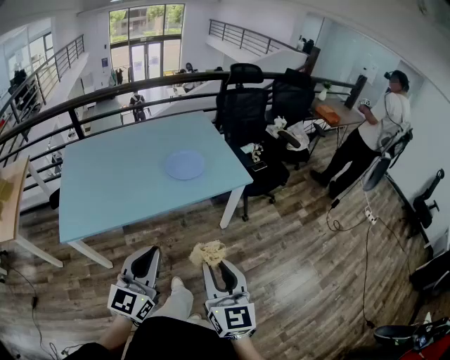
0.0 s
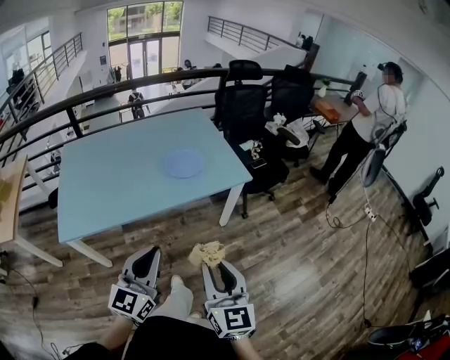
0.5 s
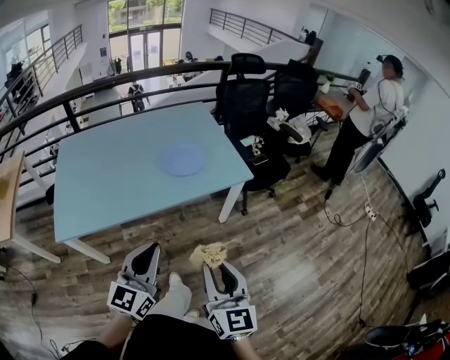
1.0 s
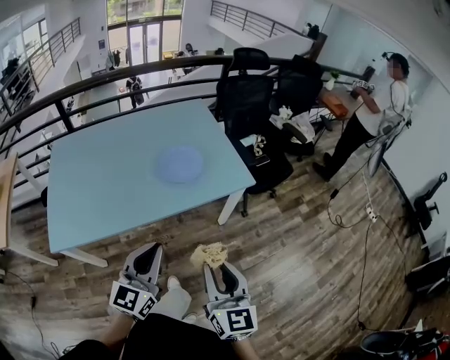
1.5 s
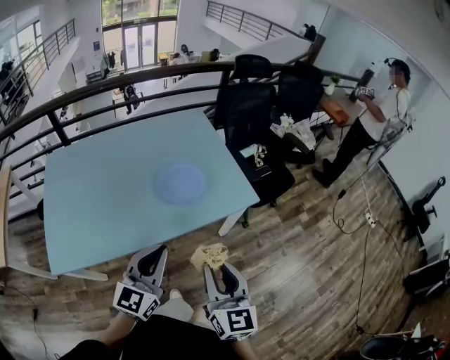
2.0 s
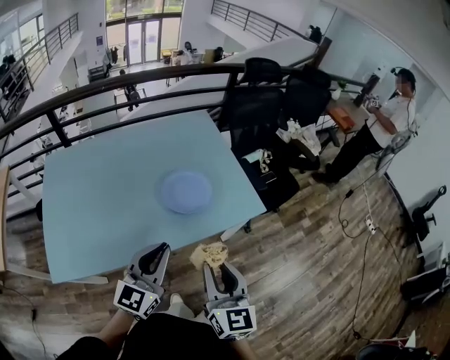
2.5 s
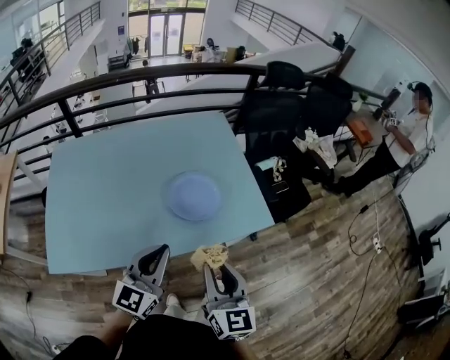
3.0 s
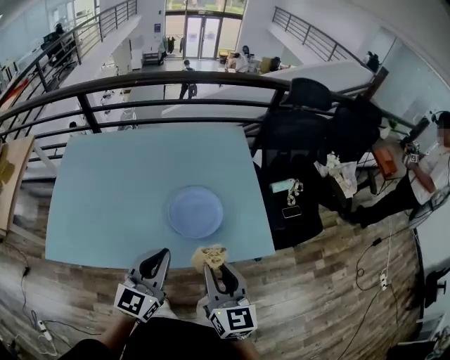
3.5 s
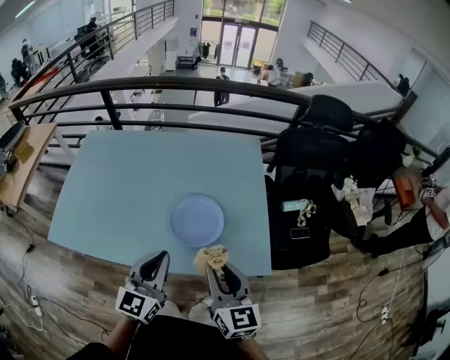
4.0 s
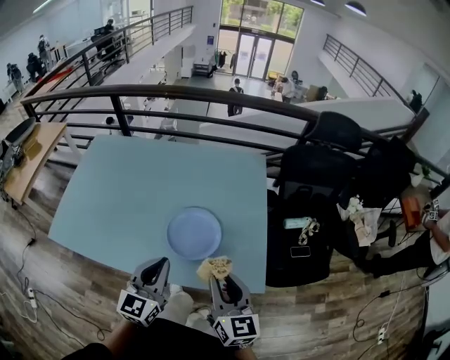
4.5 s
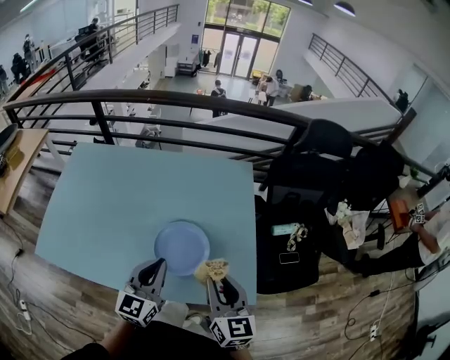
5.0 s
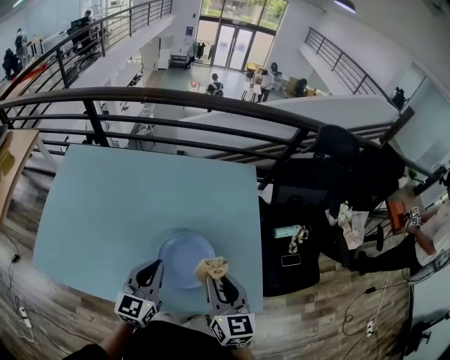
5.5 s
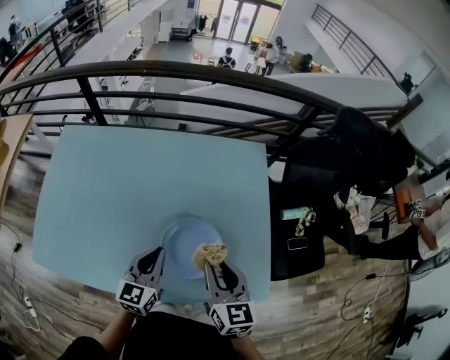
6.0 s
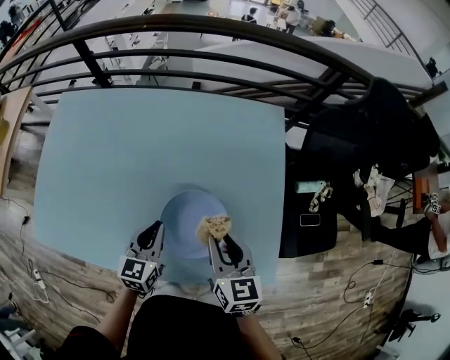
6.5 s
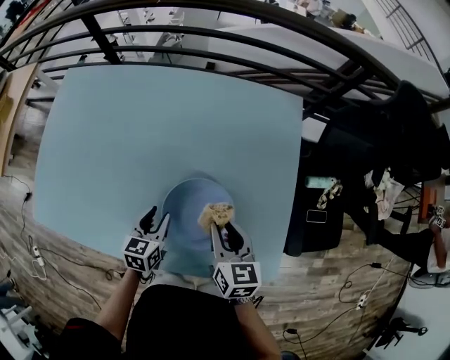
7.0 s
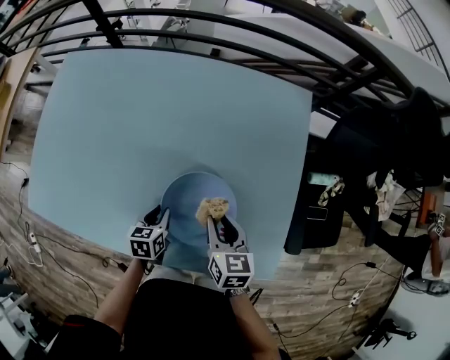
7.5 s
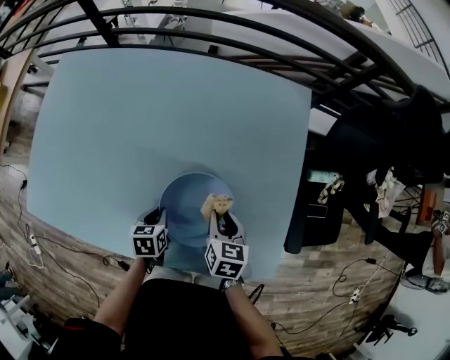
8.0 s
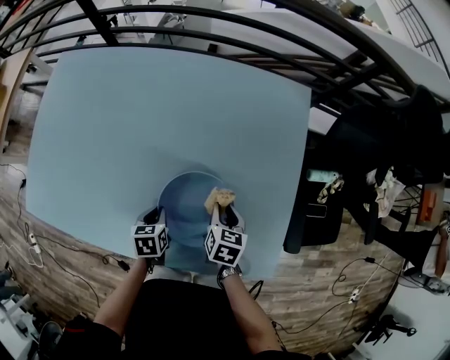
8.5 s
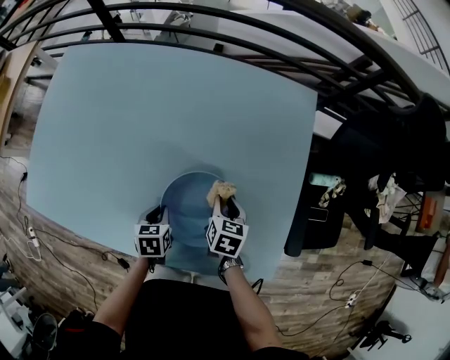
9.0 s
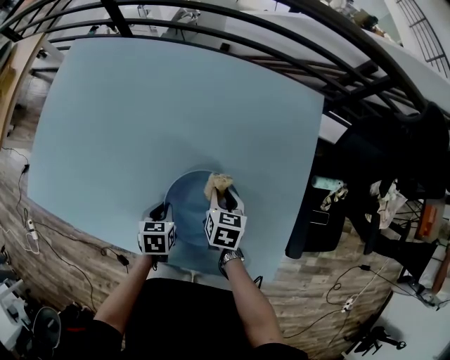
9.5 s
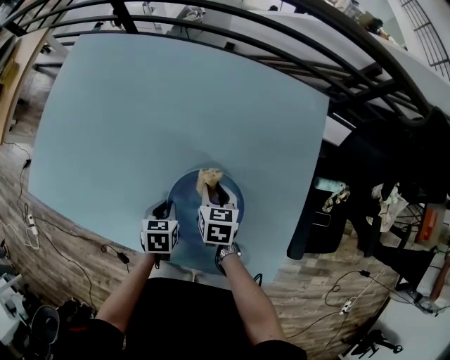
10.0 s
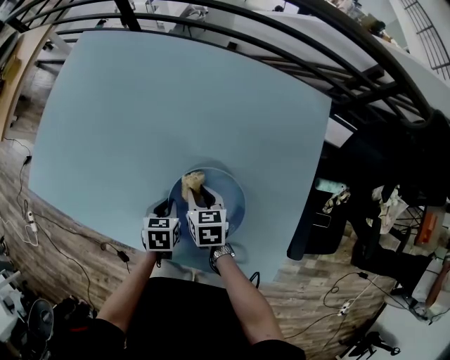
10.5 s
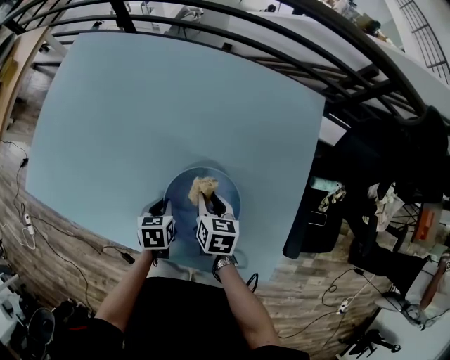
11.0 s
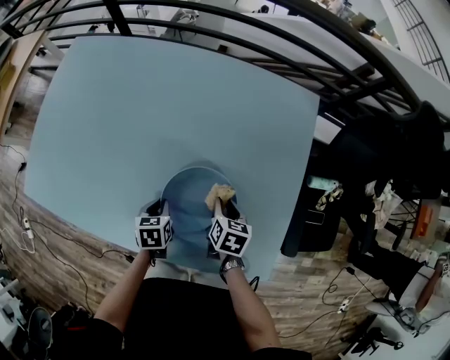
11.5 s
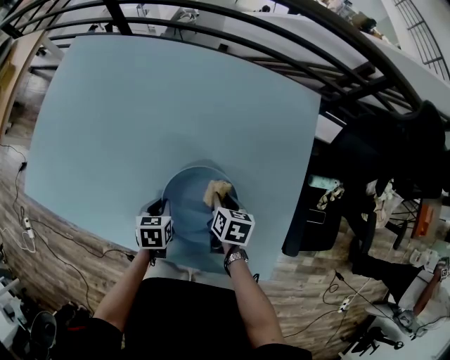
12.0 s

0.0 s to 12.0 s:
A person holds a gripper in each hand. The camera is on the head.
0.0 to 2.0 s: The two grippers go roughly 20 cm forward.
2.0 to 4.0 s: The left gripper moves approximately 20 cm, and swivels some 30 degrees. The right gripper moves about 25 cm, and changes its angle by about 30 degrees.
4.0 to 6.0 s: The right gripper moves forward, roughly 20 cm. Meanwhile the left gripper is displaced forward and downward by roughly 20 cm.
6.0 to 8.0 s: Both grippers move downward, approximately 25 cm. The right gripper turns by some 30 degrees; the left gripper tilts its fingers approximately 40 degrees downward.
8.0 to 10.0 s: The right gripper moves to the left and forward, approximately 10 cm.
10.0 to 12.0 s: The right gripper shifts about 5 cm to the right.

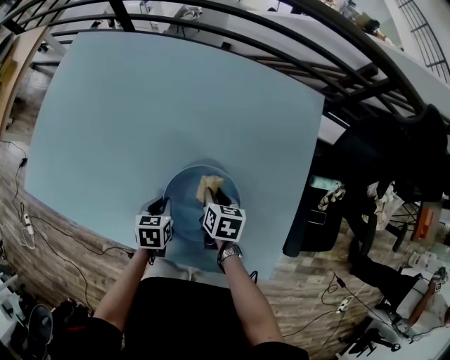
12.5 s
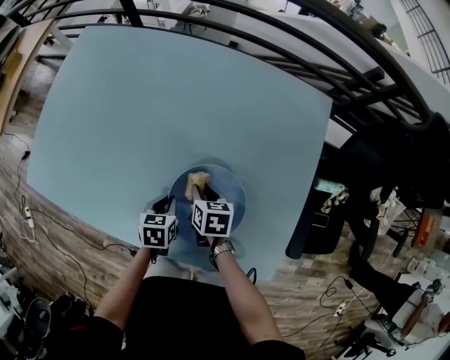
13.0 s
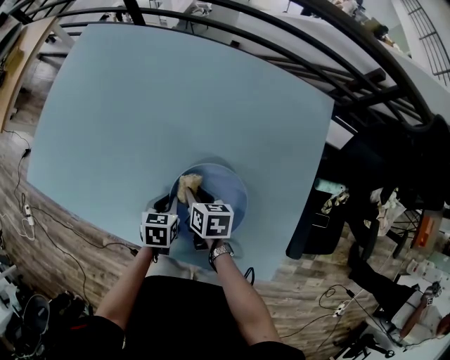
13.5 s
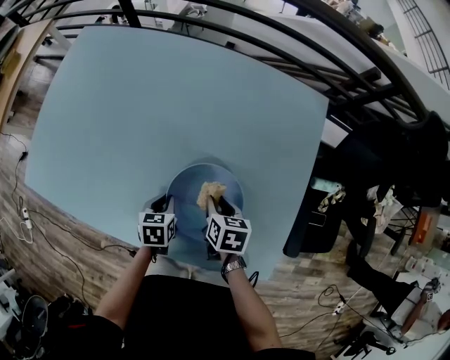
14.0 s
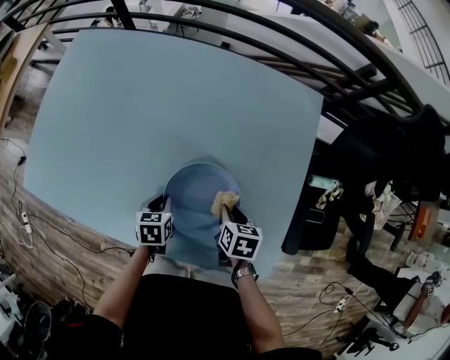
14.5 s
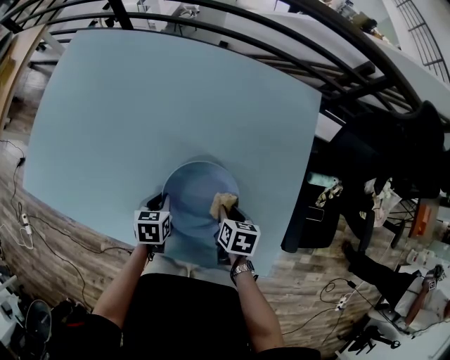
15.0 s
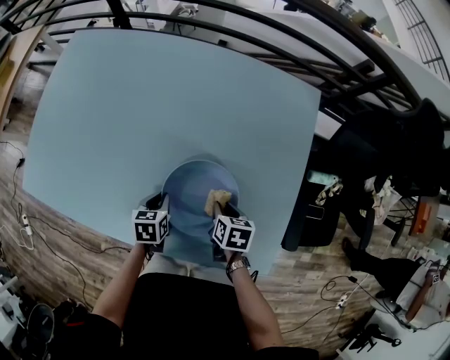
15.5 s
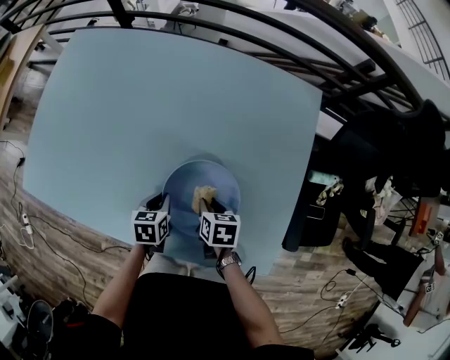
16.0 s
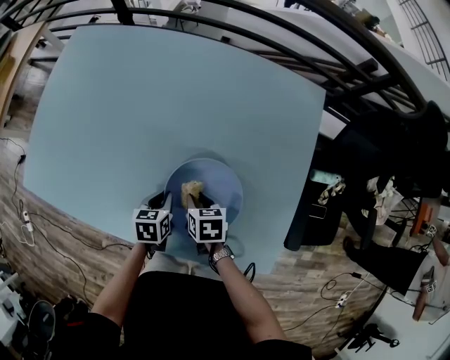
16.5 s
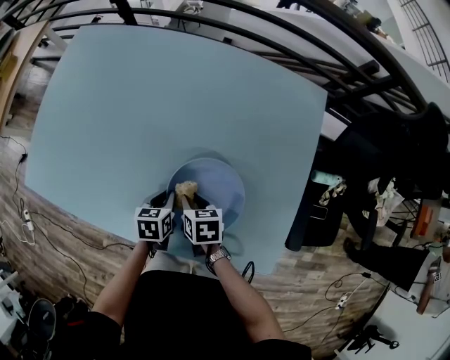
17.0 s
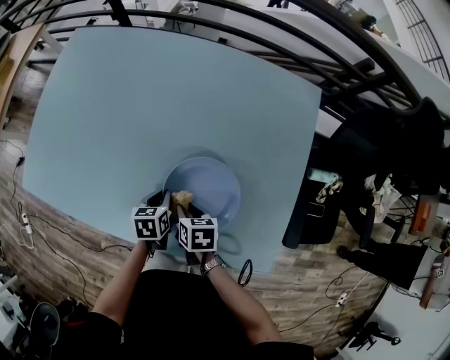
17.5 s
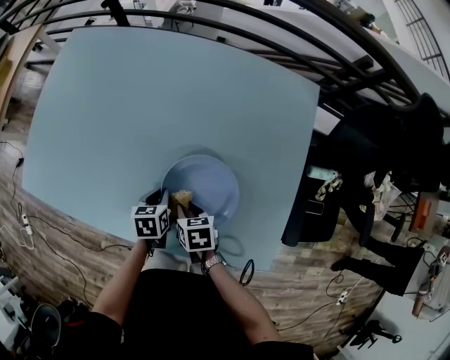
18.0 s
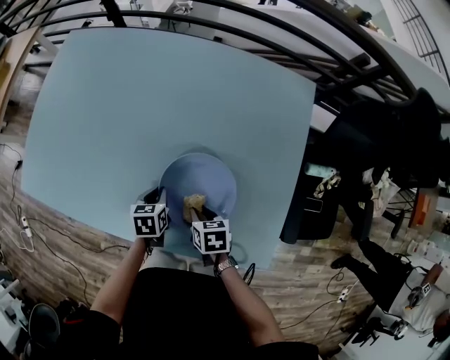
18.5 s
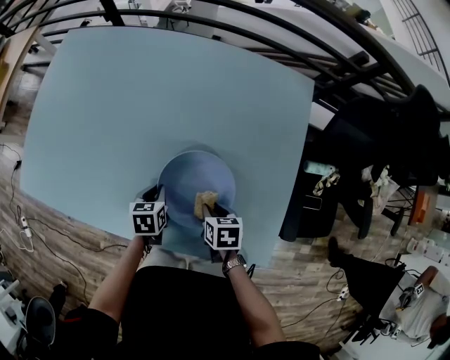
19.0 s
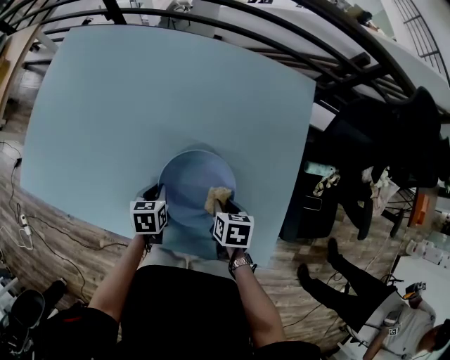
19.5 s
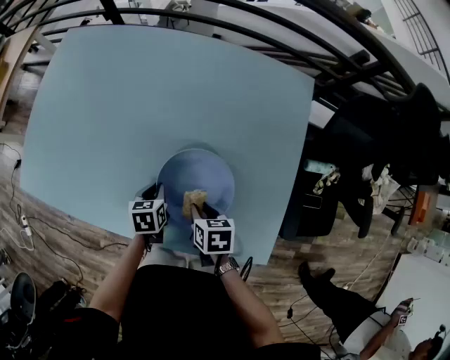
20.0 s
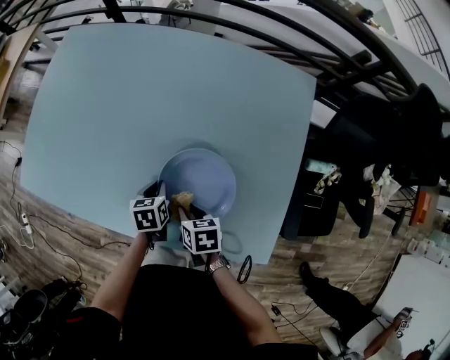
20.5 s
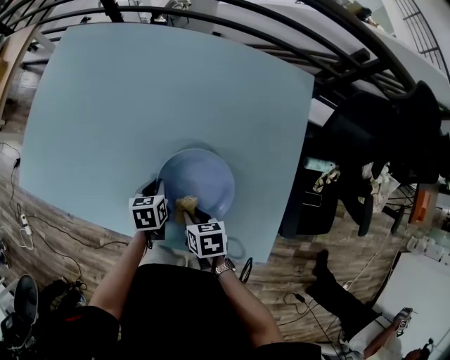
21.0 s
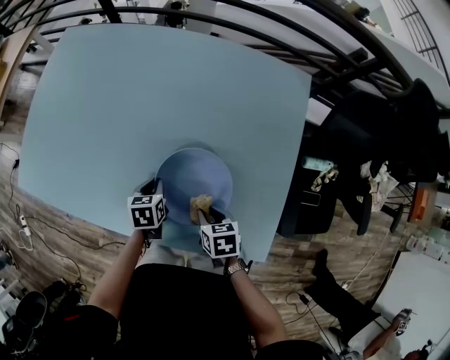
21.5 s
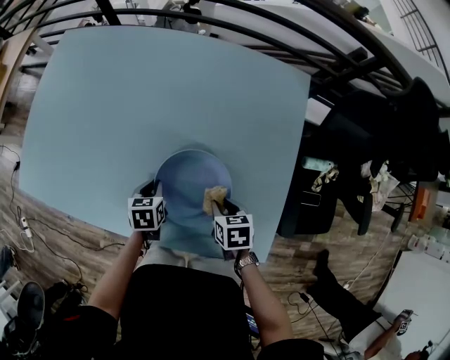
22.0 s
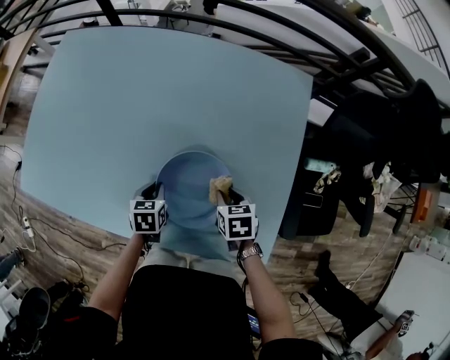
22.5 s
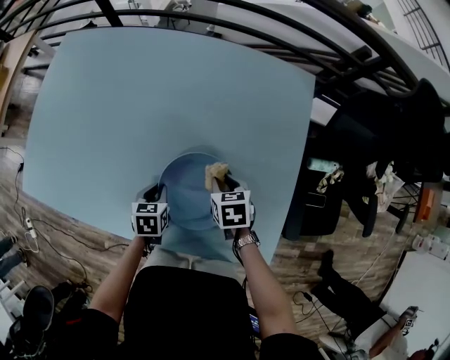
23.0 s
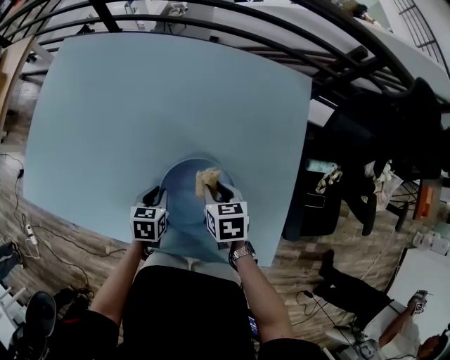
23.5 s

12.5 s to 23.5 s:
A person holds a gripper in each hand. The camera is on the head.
12.5 to 14.5 s: The right gripper travels backward by about 5 cm.
14.5 to 16.0 s: The right gripper shifts roughly 5 cm to the left.
16.0 to 18.0 s: The right gripper is displaced to the left by some 10 cm.
18.0 to 20.0 s: The right gripper is displaced to the right by roughly 5 cm.
20.0 to 21.5 s: The grippers move only a little.
21.5 to 23.5 s: The right gripper goes roughly 10 cm forward.

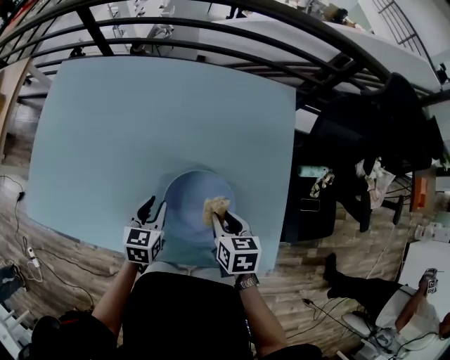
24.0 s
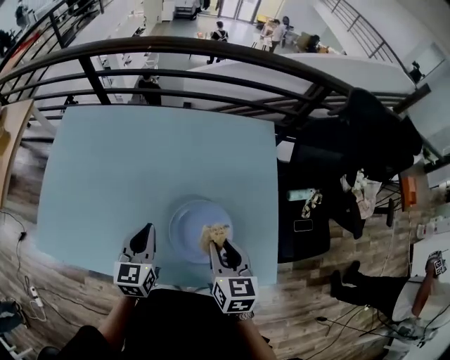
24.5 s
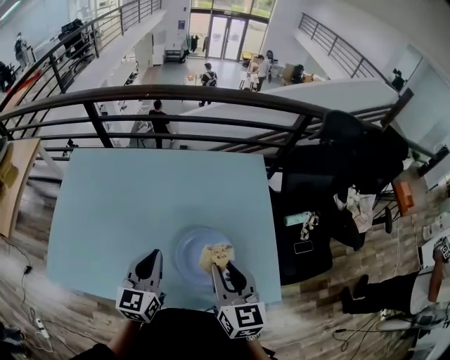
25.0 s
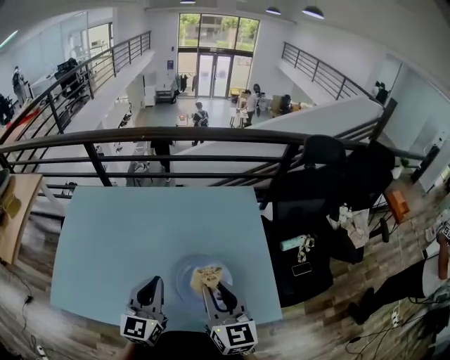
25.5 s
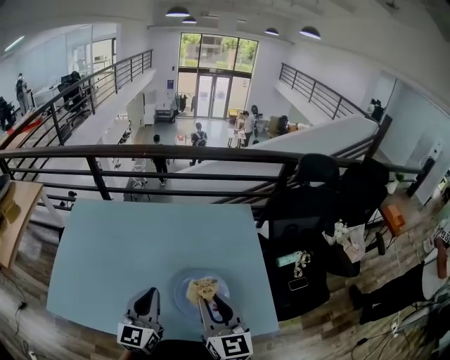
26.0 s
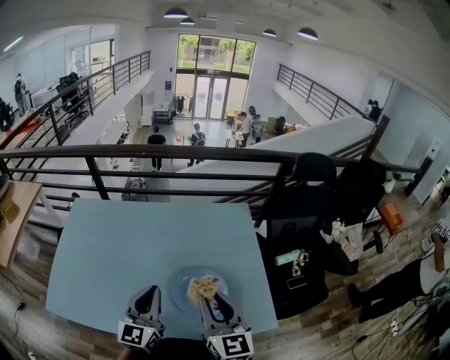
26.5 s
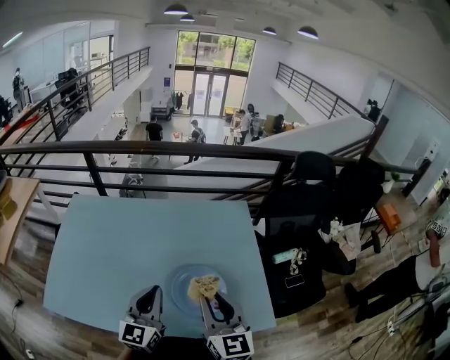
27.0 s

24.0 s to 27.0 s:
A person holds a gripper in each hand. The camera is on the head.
24.0 to 25.5 s: The two grippers go approximately 30 cm upward. The right gripper tilts its fingers roughly 40 degrees upward, while the left gripper angles its fingers upward, by roughly 40 degrees.
25.5 to 27.0 s: The grippers make only small movements.

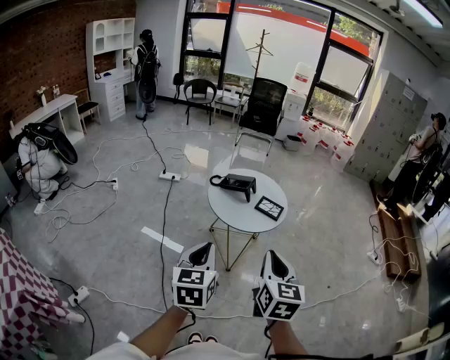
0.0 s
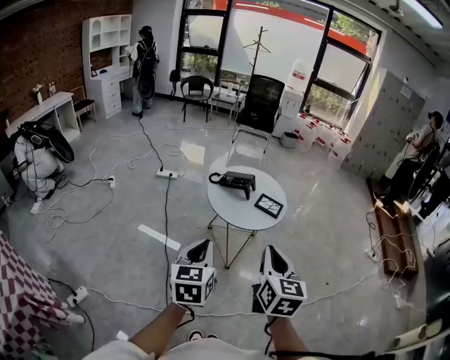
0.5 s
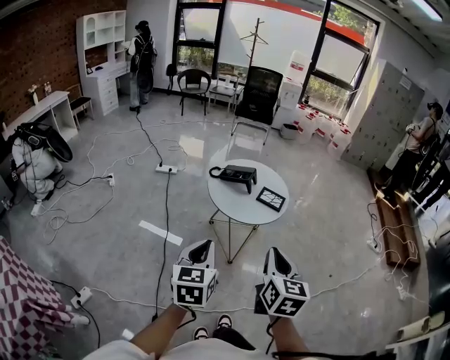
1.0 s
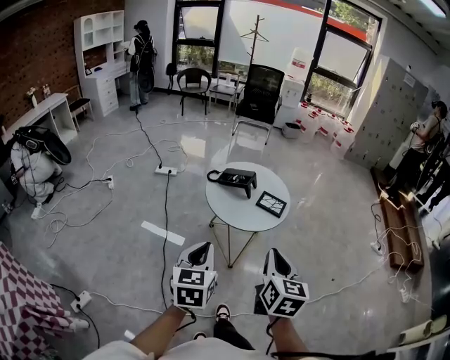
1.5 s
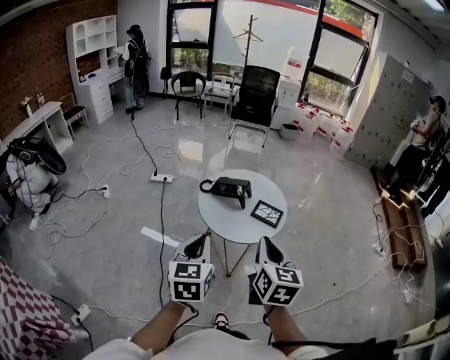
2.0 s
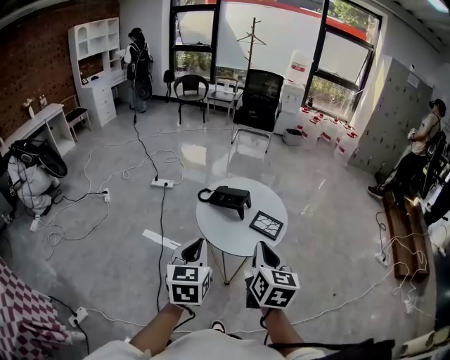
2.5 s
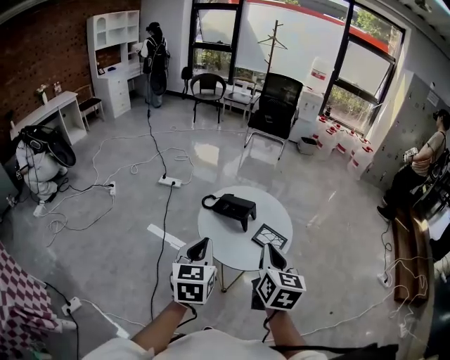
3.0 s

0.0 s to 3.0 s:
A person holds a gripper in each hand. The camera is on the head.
0.0 to 1.5 s: The right gripper shifts by some 5 cm. The left gripper ends up about 5 cm from where it was.
1.5 to 3.0 s: Both grippers travel together forward, approximately 20 cm.
